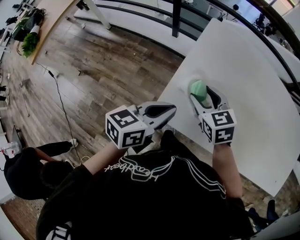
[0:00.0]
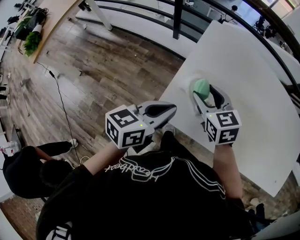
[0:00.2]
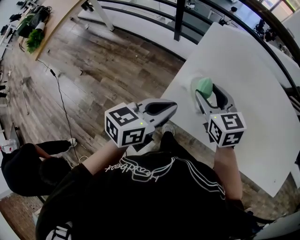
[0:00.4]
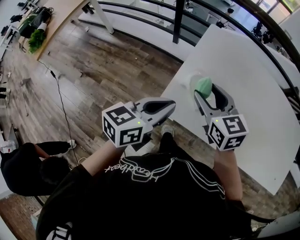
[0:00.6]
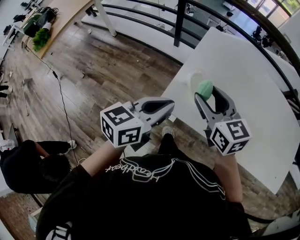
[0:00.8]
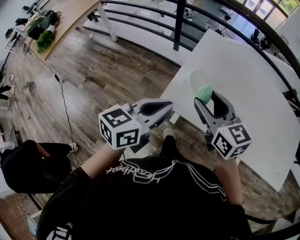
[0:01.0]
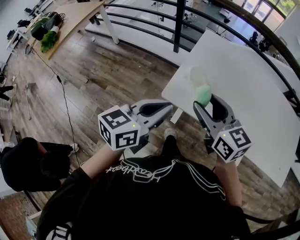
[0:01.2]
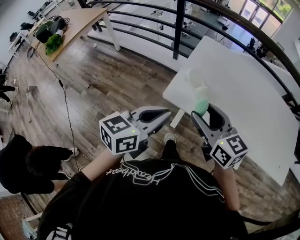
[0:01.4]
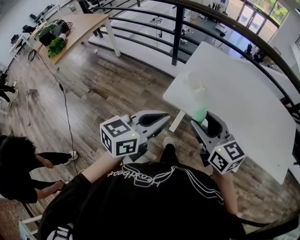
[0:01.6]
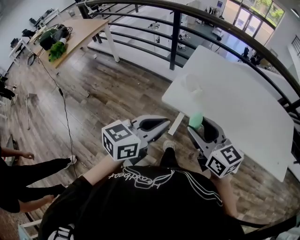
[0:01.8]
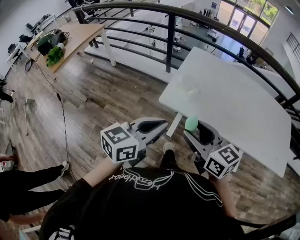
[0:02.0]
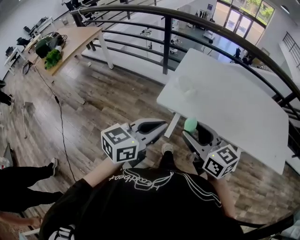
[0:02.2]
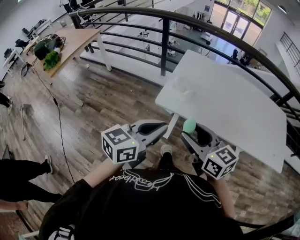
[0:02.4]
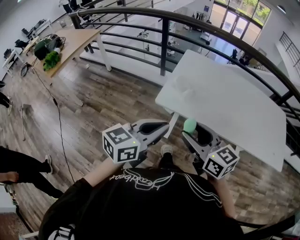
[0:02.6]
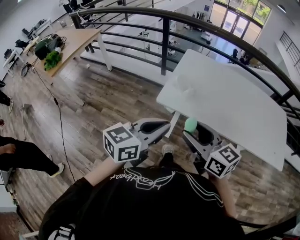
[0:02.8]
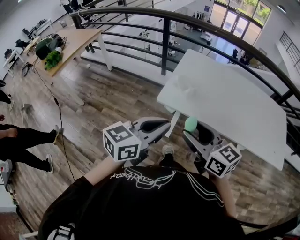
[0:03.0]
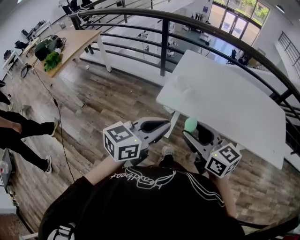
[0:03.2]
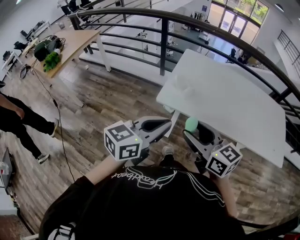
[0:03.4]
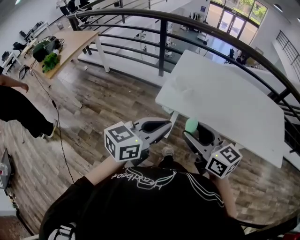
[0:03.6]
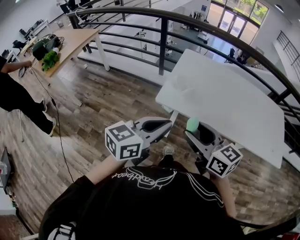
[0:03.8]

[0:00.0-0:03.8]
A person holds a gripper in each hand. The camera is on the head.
0:00.0 to 0:01.2: The grippers both shift backward and upward by roughly 20 cm. The right gripper swivels some 30 degrees.
0:01.2 to 0:02.6: Both grippers move backward, about 15 cm.
0:02.6 to 0:03.8: The grippers move only a little.

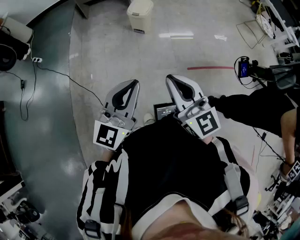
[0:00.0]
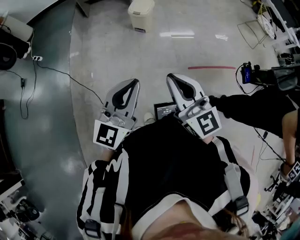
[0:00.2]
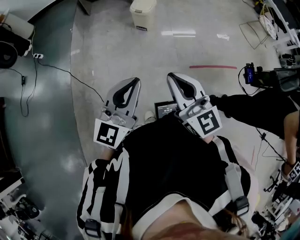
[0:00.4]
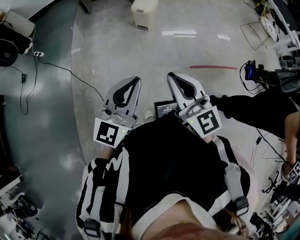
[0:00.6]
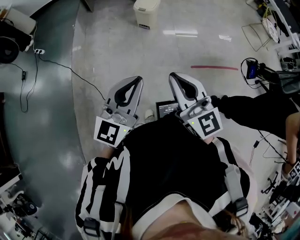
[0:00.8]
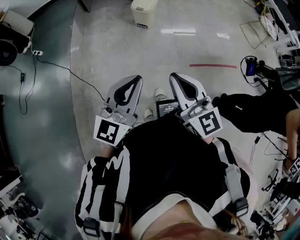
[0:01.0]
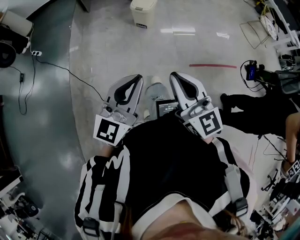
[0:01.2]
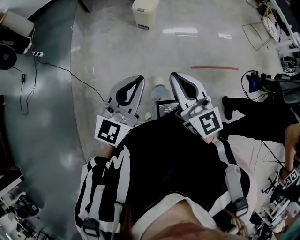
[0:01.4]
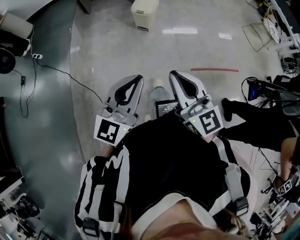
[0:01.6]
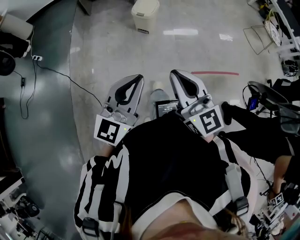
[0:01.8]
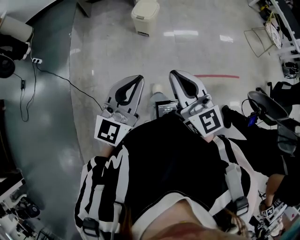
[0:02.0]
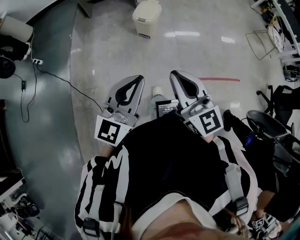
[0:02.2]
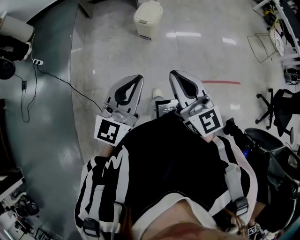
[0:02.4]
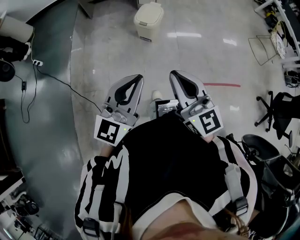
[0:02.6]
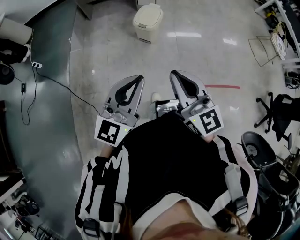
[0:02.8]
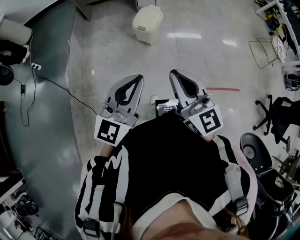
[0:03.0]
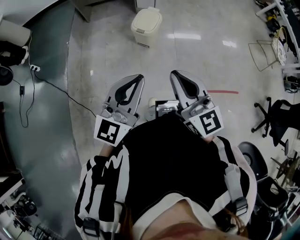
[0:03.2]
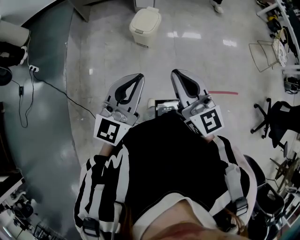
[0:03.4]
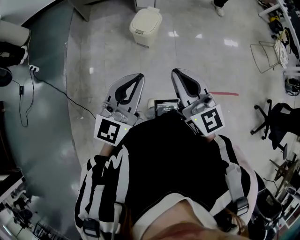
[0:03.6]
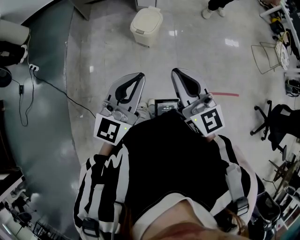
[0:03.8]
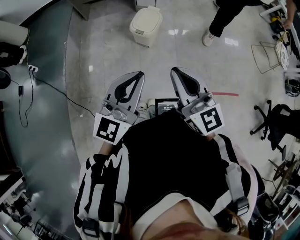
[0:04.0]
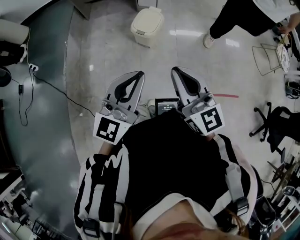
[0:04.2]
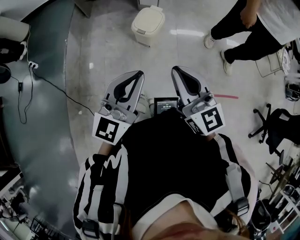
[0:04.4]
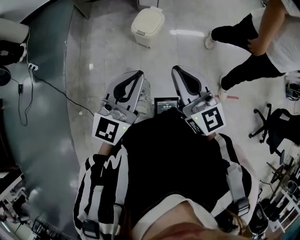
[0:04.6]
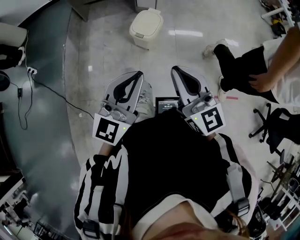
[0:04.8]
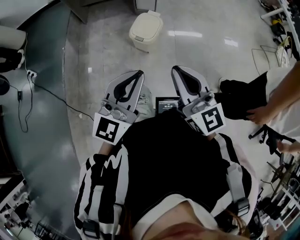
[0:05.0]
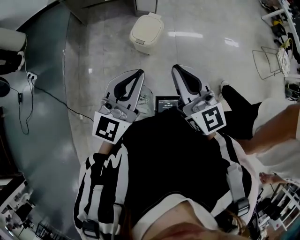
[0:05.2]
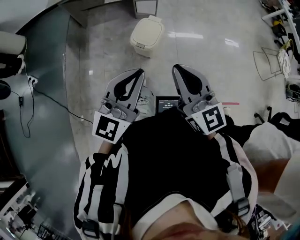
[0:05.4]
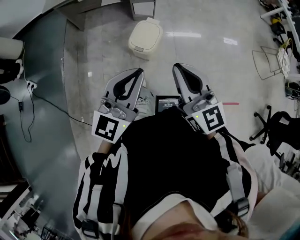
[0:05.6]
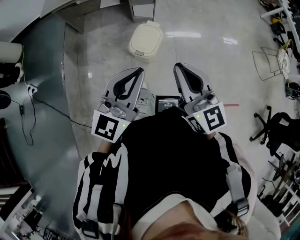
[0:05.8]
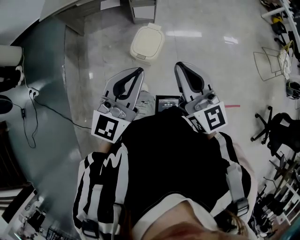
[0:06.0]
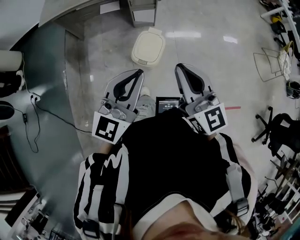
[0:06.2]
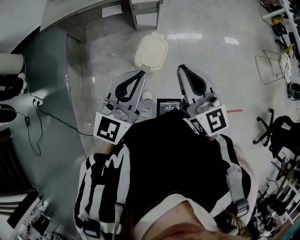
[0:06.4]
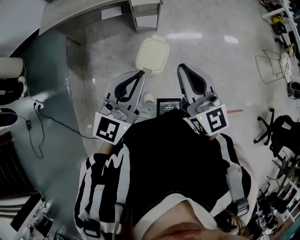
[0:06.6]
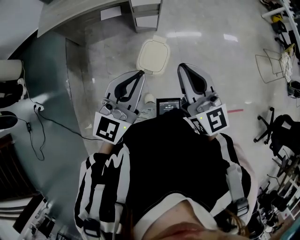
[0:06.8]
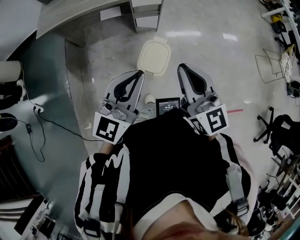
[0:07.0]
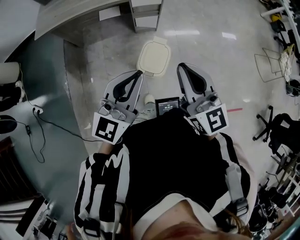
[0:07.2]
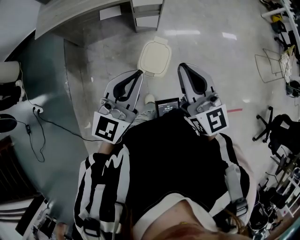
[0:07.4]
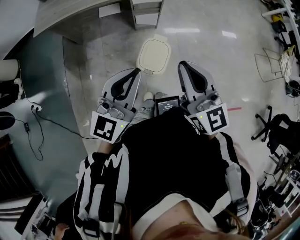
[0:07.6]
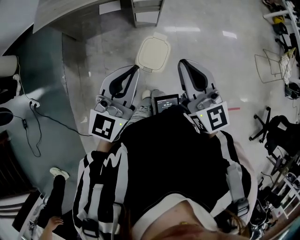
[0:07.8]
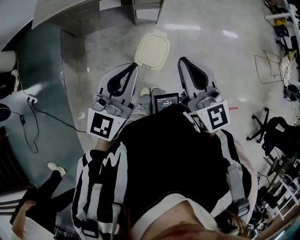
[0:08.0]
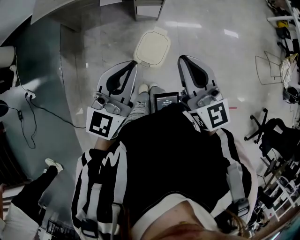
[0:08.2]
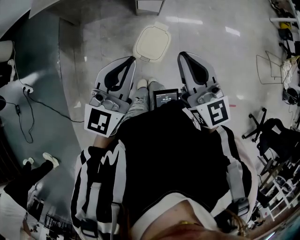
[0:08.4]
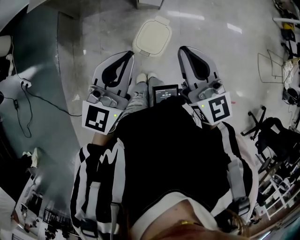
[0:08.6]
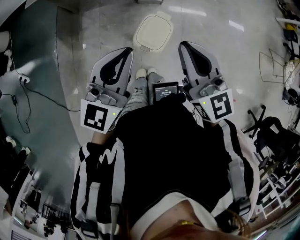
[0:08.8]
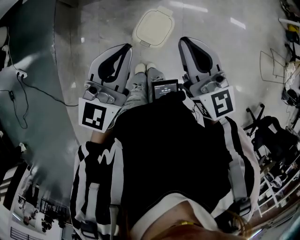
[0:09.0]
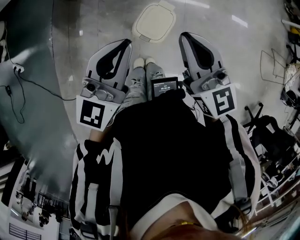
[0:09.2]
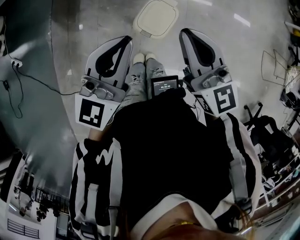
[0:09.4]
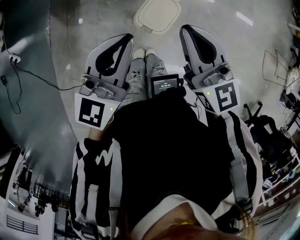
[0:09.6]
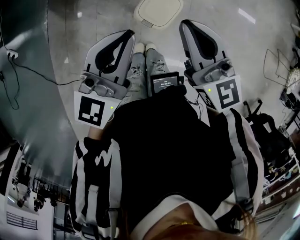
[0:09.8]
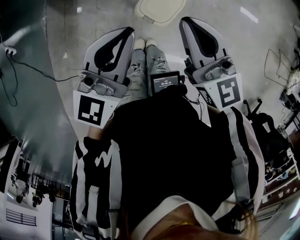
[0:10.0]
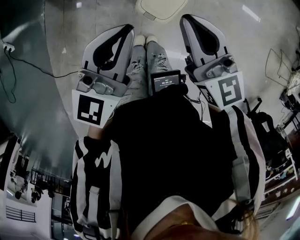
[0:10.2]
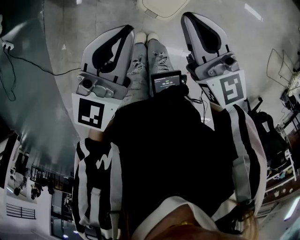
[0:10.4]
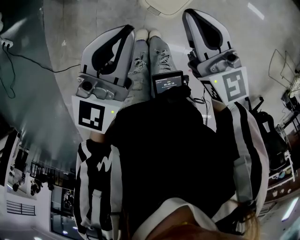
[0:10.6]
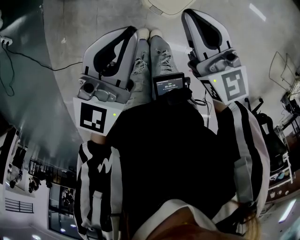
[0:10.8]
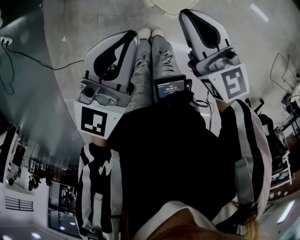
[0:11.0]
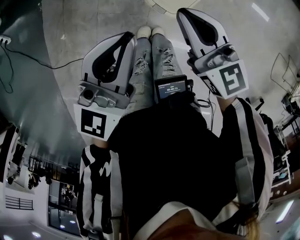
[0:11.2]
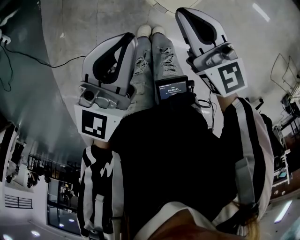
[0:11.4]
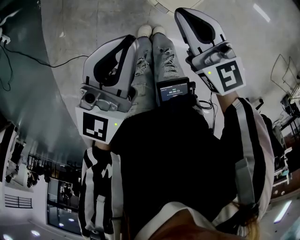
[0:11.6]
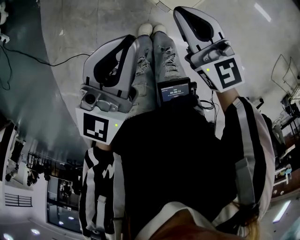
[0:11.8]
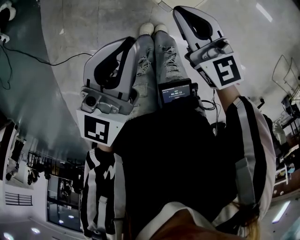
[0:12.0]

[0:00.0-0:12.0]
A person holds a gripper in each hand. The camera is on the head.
0:00.0 to 0:01.6: The grippers both shift forward by some 5 cm.
0:01.6 to 0:03.0: Both grippers move forward, about 25 cm.
0:03.0 to 0:04.4: The two grippers go about 10 cm forward.
0:04.4 to 0:06.0: The two grippers go approximately 25 cm forward.
0:06.0 to 0:07.6: The grippers both shift forward and to the left by about 20 cm.
0:07.6 to 0:09.0: The right gripper travels downward by about 5 cm, while the left gripper changes place by some 5 cm.
0:09.0 to 0:10.4: The two grippers go roughly 10 cm downward.
0:10.4 to 0:12.0: The right gripper goes roughly 15 cm downward, while the left gripper travels downward by about 5 cm.

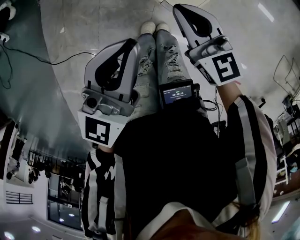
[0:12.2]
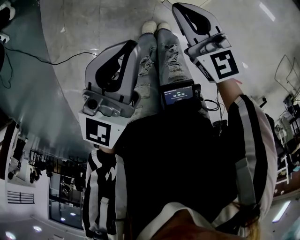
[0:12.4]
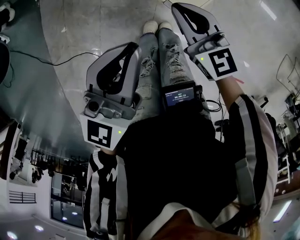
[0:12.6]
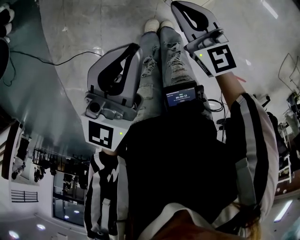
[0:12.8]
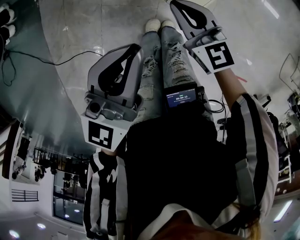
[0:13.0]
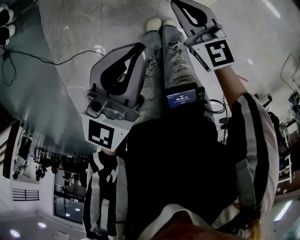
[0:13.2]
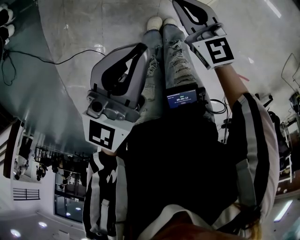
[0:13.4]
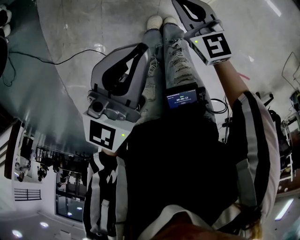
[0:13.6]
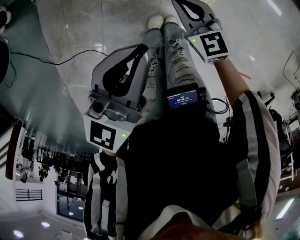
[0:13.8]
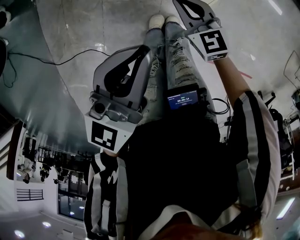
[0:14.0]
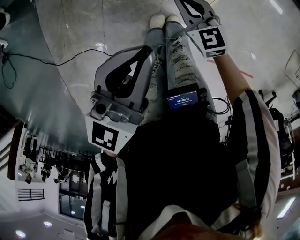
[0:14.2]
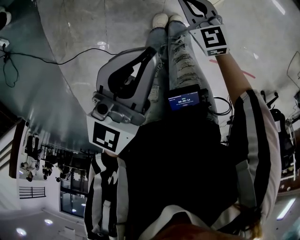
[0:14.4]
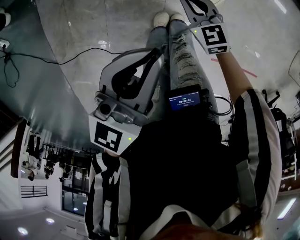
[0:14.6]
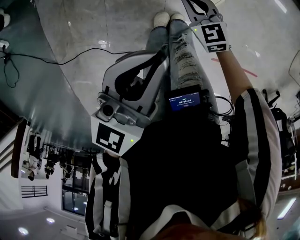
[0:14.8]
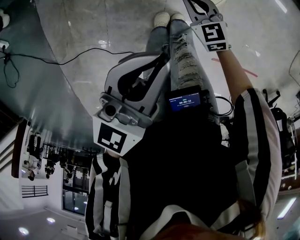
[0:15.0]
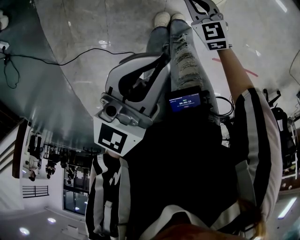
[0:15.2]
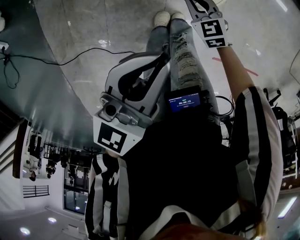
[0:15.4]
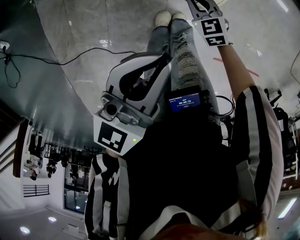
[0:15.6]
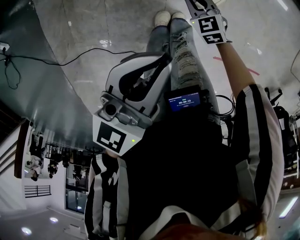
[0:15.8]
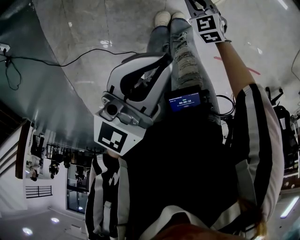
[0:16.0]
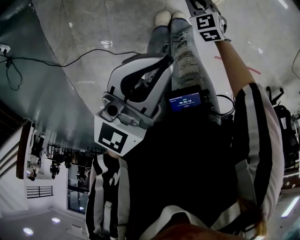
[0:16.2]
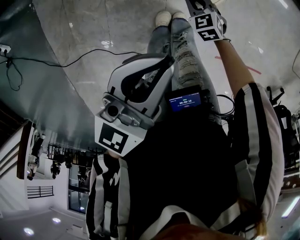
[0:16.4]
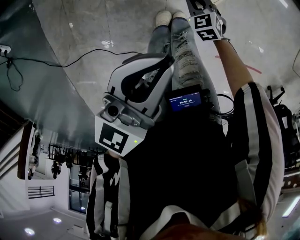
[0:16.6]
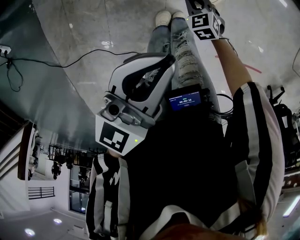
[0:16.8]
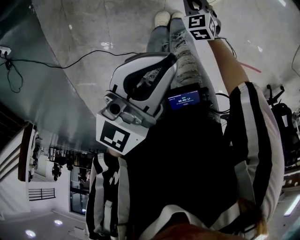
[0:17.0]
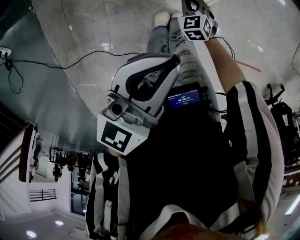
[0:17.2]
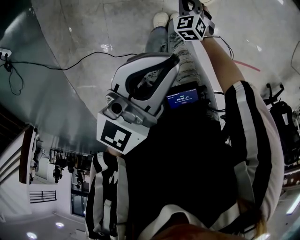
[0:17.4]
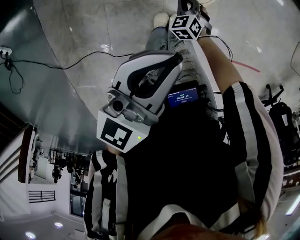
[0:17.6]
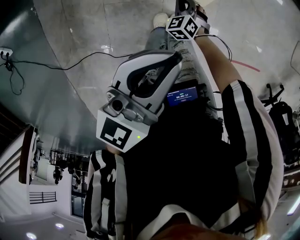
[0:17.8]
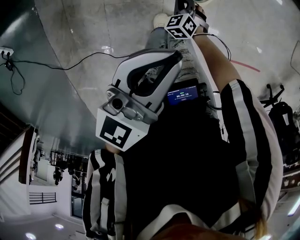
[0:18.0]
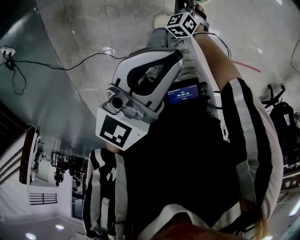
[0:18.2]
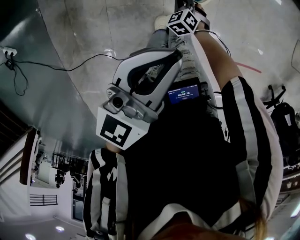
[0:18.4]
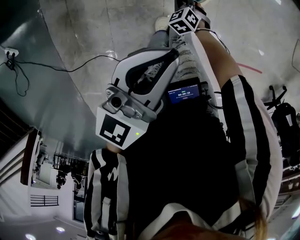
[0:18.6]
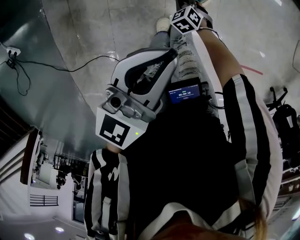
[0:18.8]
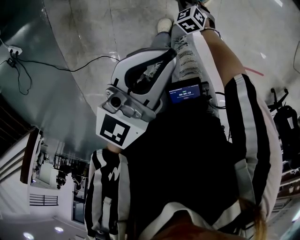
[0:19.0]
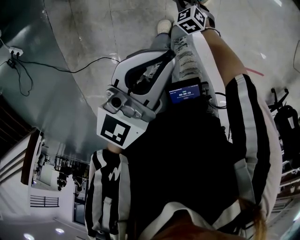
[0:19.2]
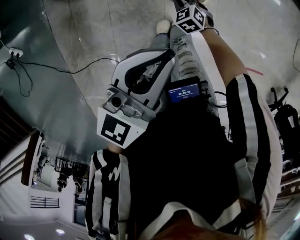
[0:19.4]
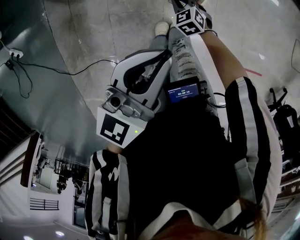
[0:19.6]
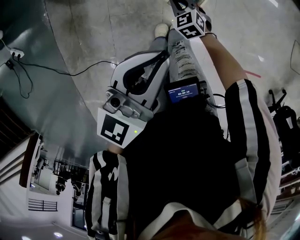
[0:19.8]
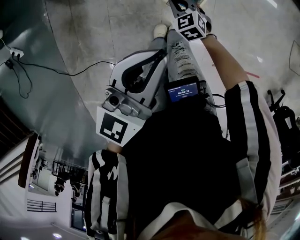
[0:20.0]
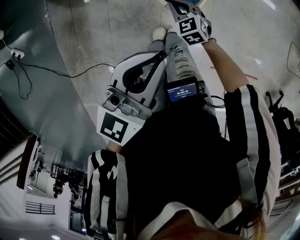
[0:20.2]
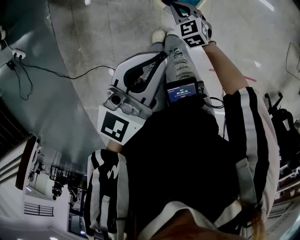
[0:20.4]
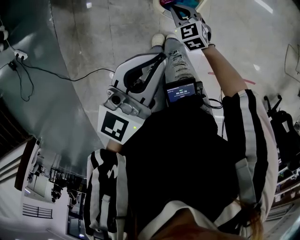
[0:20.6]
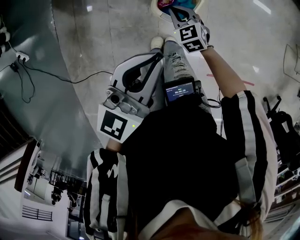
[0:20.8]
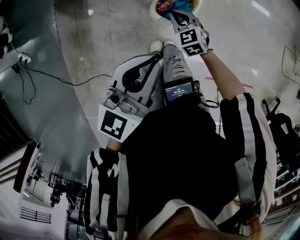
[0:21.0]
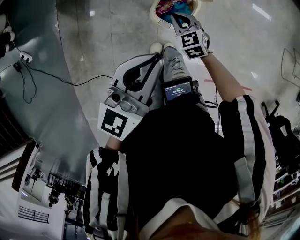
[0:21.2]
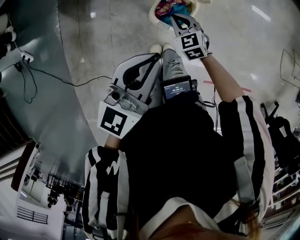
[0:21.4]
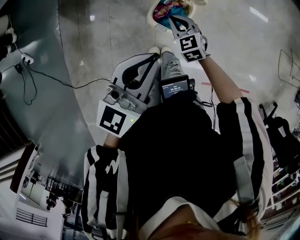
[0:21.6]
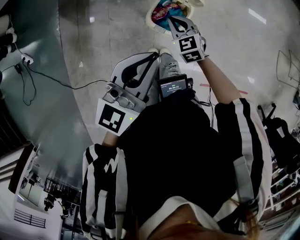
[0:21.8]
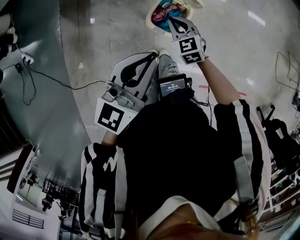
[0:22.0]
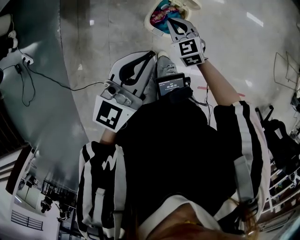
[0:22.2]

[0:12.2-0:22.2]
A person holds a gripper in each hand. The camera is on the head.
0:12.2 to 0:13.6: The right gripper goes some 10 cm downward.
0:13.6 to 0:15.0: The right gripper heads downward, covering approximately 10 cm.
0:15.0 to 0:16.4: The right gripper moves downward, approximately 10 cm.
0:16.4 to 0:18.0: The right gripper changes its angle by roughly 20 degrees.
0:18.0 to 0:19.4: The grippers stay close to where they were, moving slightly.
0:19.4 to 0:20.8: The right gripper travels upward by about 15 cm.
0:20.8 to 0:22.2: The right gripper is displaced upward by approximately 10 cm; the left gripper goes approximately 5 cm upward.
